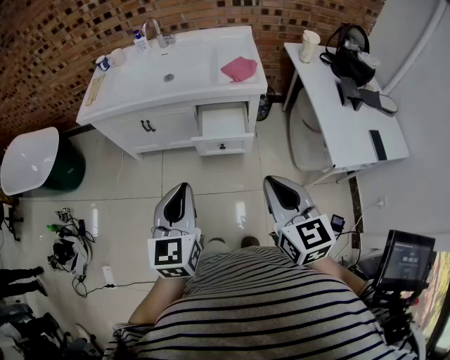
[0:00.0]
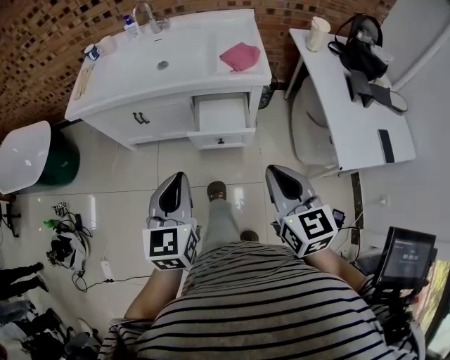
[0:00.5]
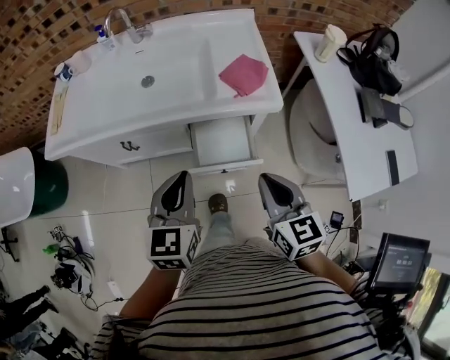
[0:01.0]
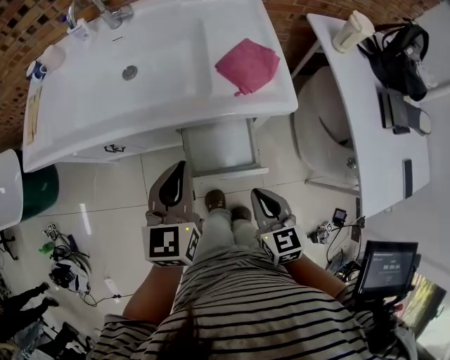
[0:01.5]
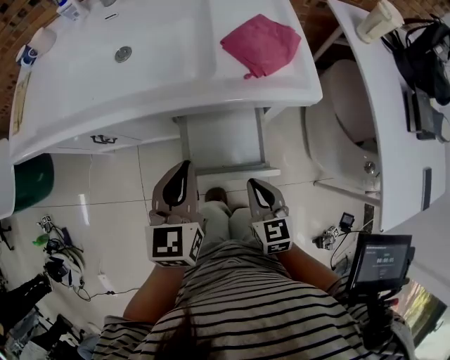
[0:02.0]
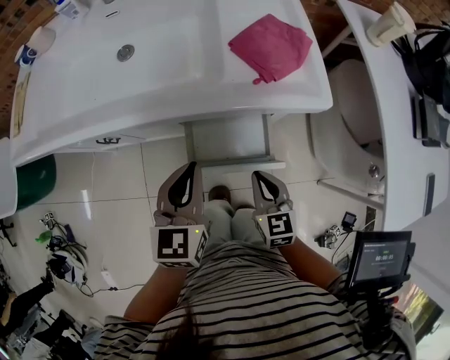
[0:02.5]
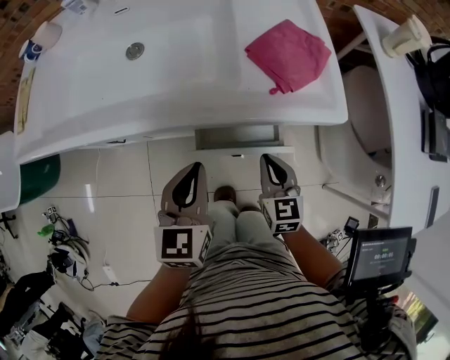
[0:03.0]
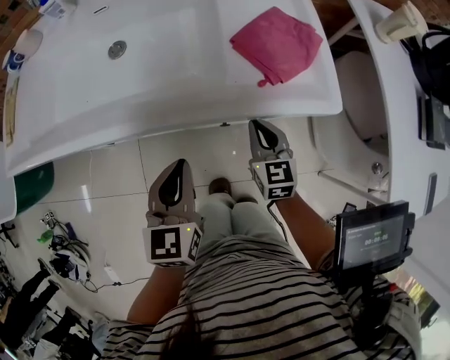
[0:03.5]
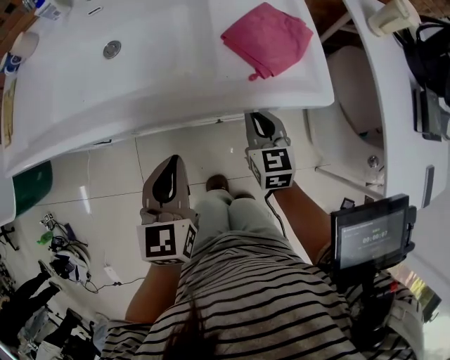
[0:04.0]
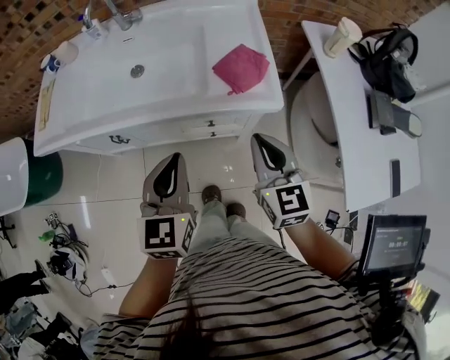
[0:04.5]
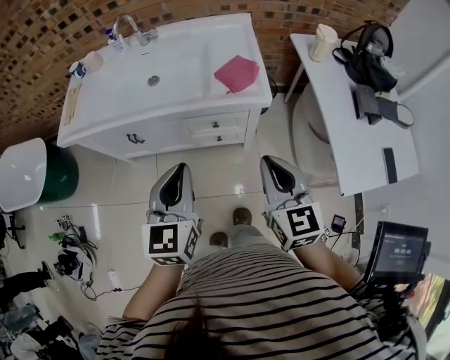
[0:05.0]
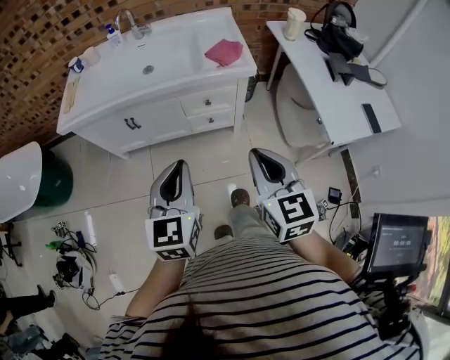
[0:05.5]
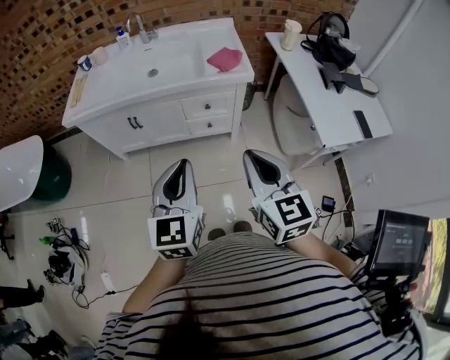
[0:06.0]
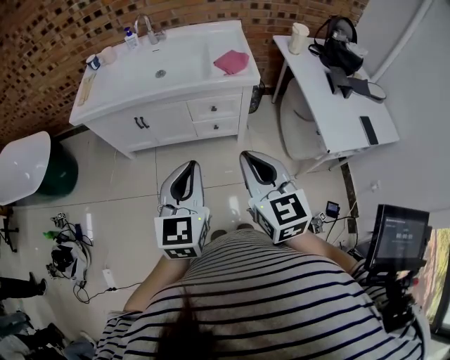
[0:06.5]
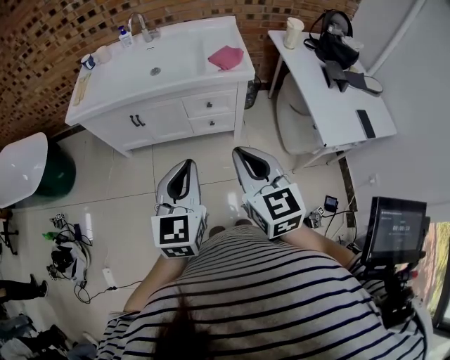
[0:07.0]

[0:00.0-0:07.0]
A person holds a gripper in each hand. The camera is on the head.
0:00.0 to 0:02.0: The right gripper is displaced downward and forward by approximately 50 cm. The left gripper is displaced forward and downward by approximately 40 cm.
0:02.0 to 0:03.5: The right gripper moves forward, roughly 15 cm.
0:03.5 to 0:05.0: Both grippers travel together upward and backward, about 35 cm.
0:05.0 to 0:07.0: The left gripper moves backward, approximately 20 cm. Meanwhile the right gripper is displaced backward and to the left by some 20 cm.

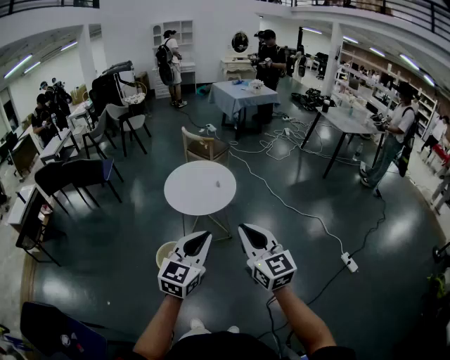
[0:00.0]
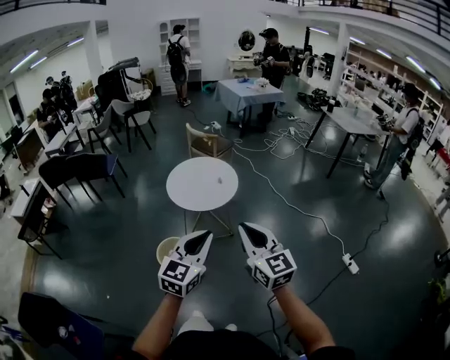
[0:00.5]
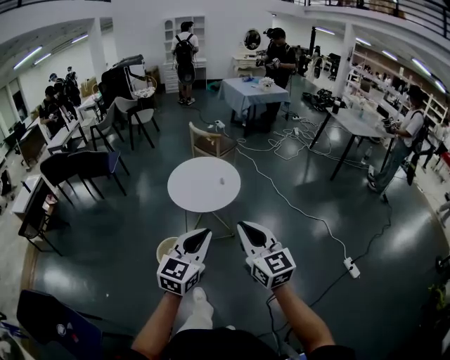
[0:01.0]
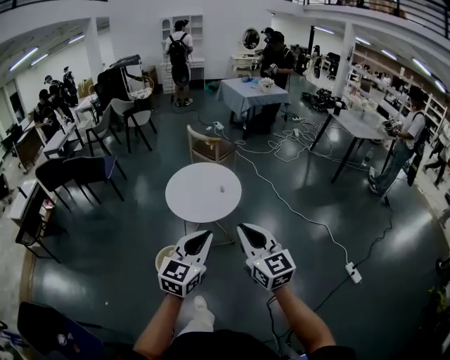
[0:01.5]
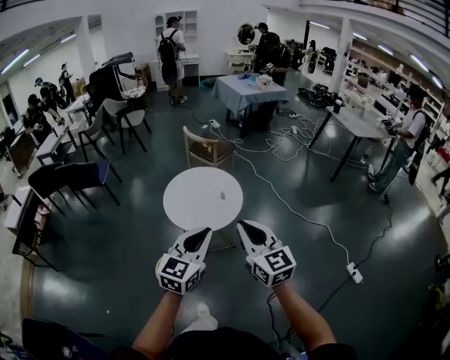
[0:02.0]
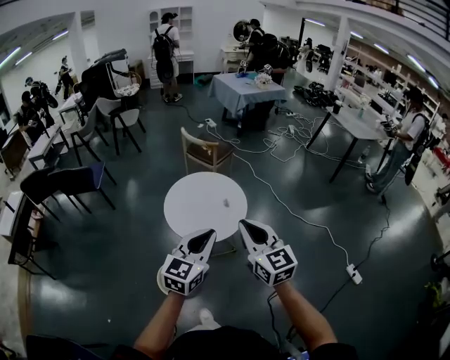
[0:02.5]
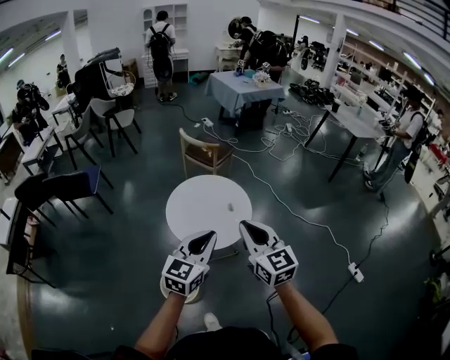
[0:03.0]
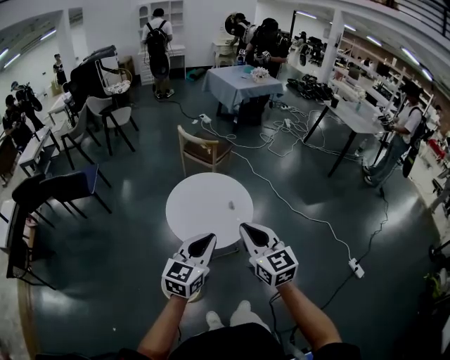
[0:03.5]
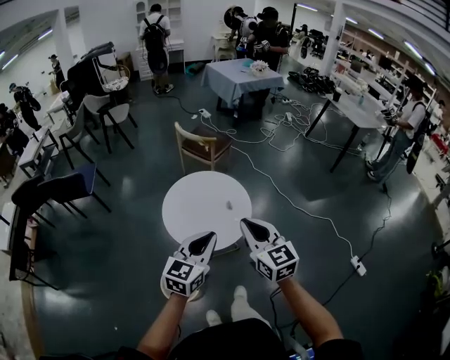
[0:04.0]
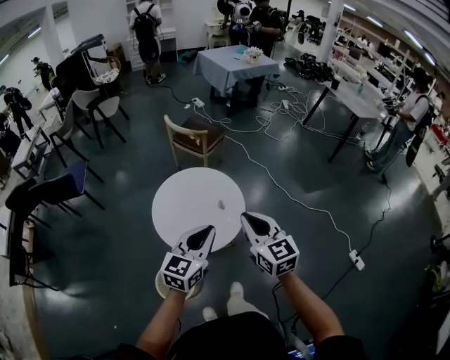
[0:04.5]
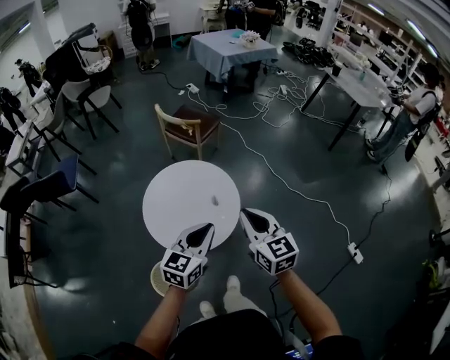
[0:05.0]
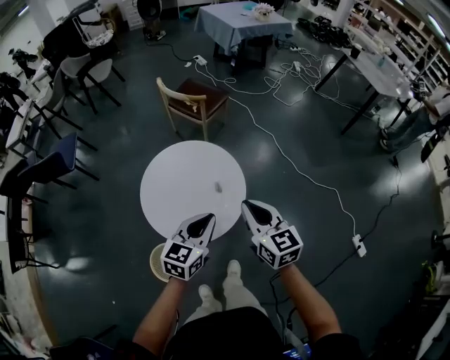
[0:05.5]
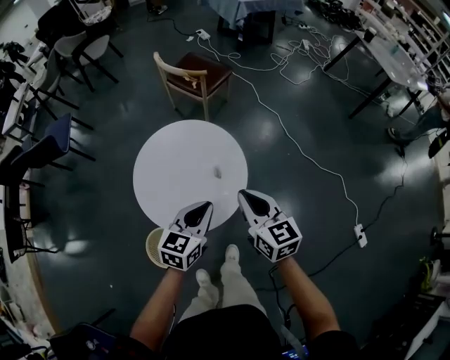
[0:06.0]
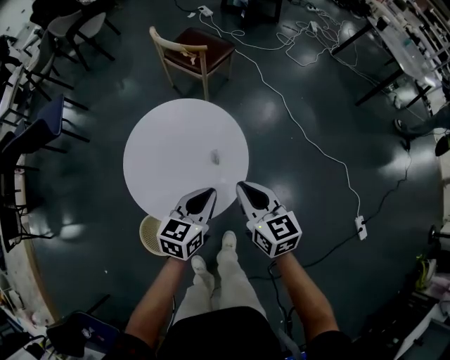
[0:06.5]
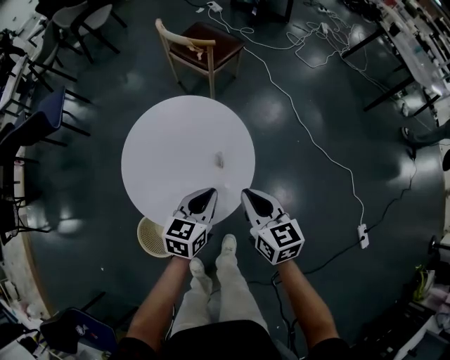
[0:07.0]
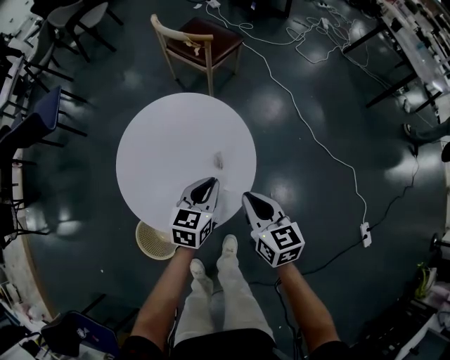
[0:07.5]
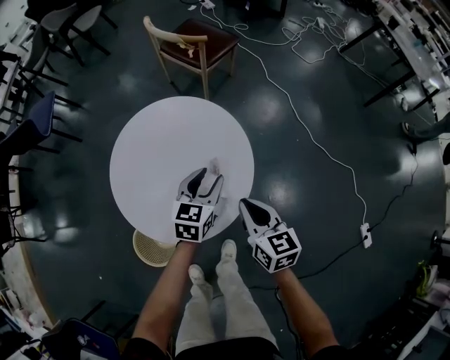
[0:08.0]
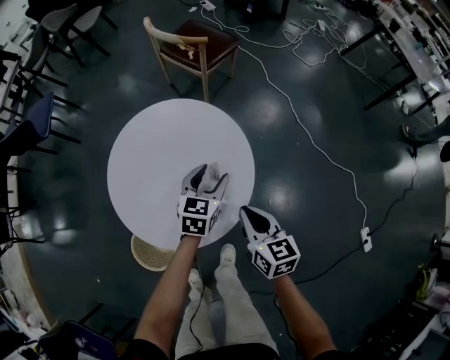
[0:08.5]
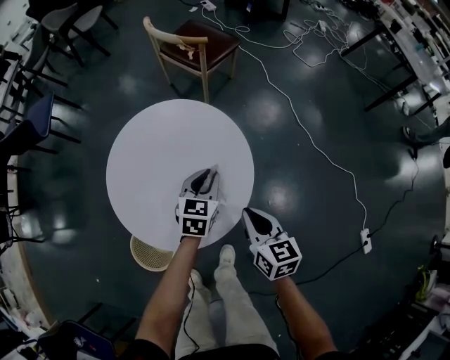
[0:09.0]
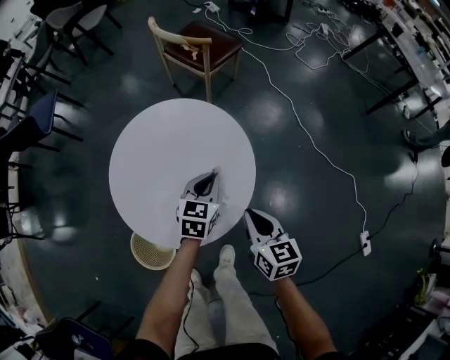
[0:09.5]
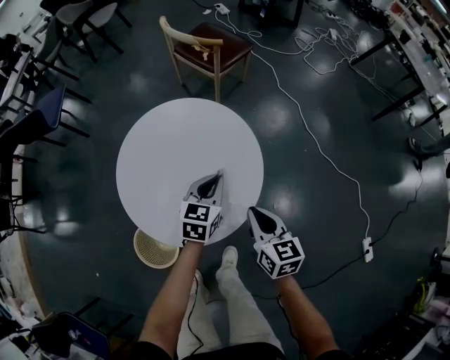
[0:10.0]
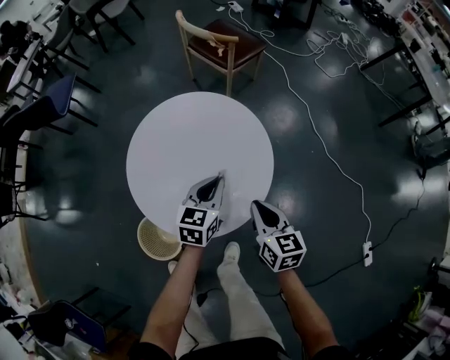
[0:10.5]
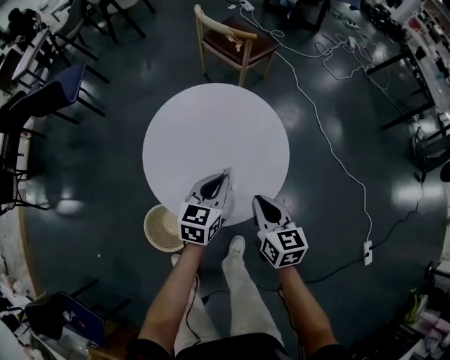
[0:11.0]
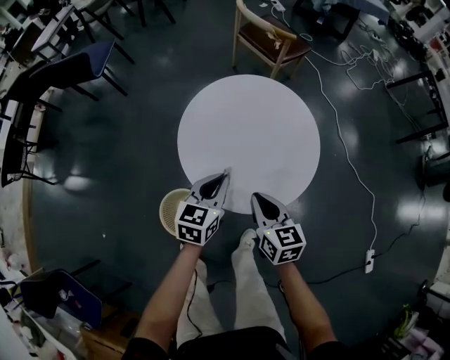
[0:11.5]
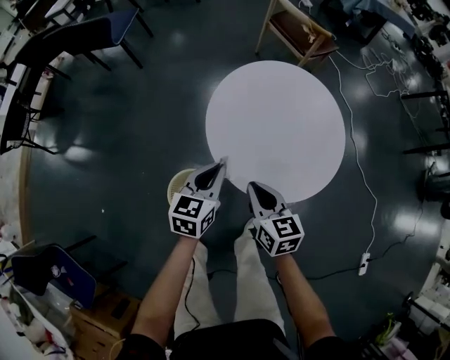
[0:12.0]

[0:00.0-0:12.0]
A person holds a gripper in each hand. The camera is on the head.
0:00.0 to 0:02.0: Both grippers travel together forward, roughly 20 cm.
0:02.0 to 0:04.0: Both grippers travel together forward and to the left, approximately 20 cm.
0:04.0 to 0:06.0: The grippers both shift forward and downward by about 30 cm.
0:06.0 to 0:08.0: The right gripper shifts some 20 cm downward. Meanwhile the left gripper travels downward and forward by approximately 25 cm, and opens up.
0:08.0 to 0:10.0: The left gripper closes.
0:10.0 to 0:12.0: The left gripper goes roughly 35 cm to the left and backward. The right gripper shifts roughly 30 cm to the left.

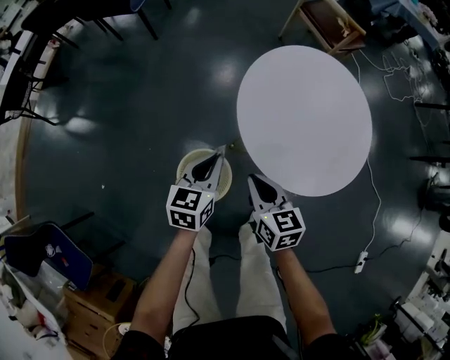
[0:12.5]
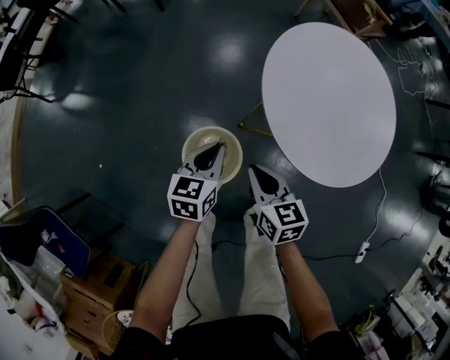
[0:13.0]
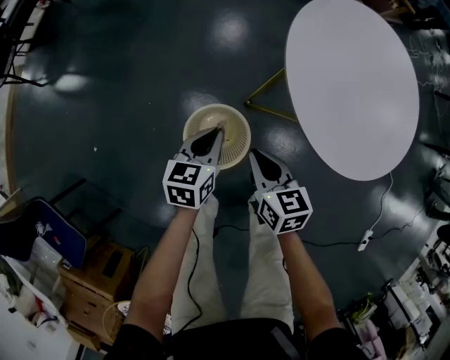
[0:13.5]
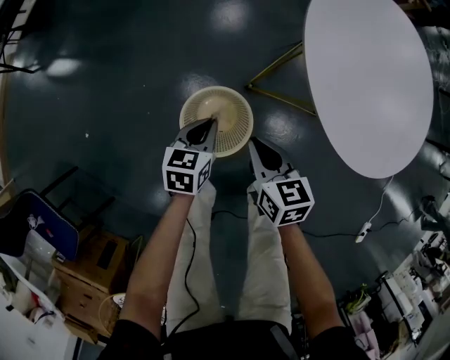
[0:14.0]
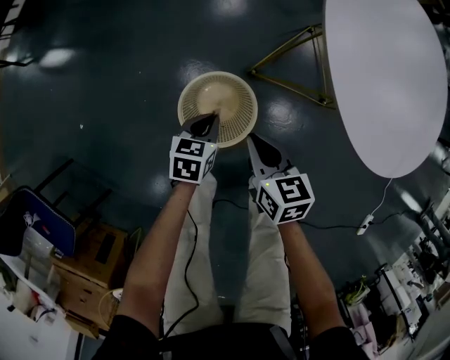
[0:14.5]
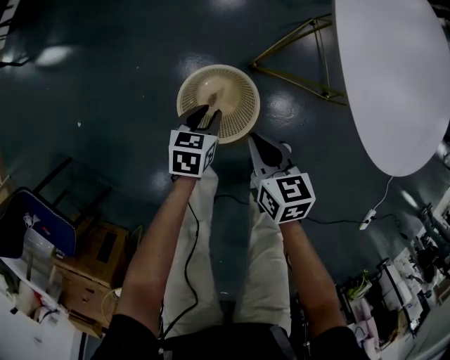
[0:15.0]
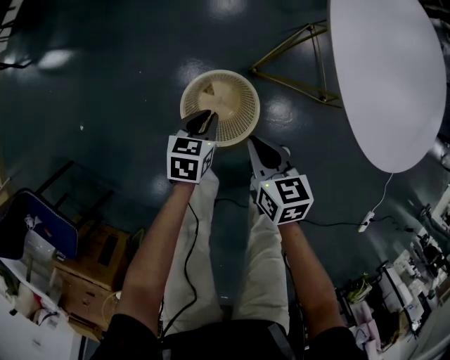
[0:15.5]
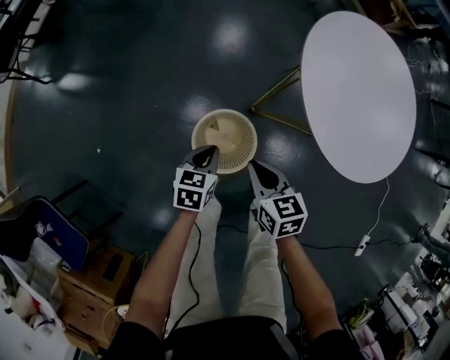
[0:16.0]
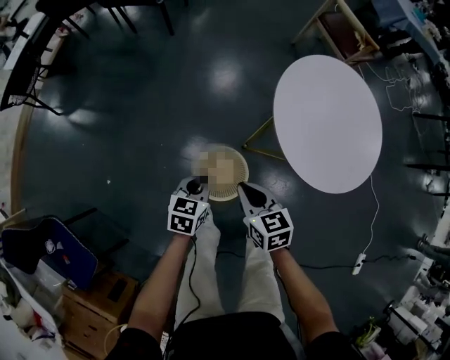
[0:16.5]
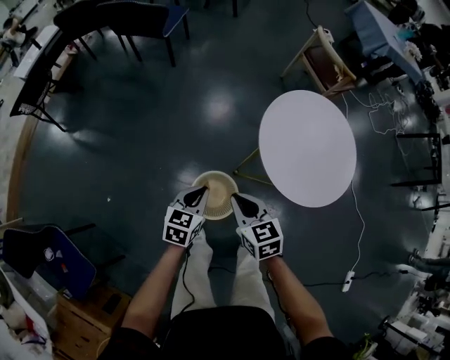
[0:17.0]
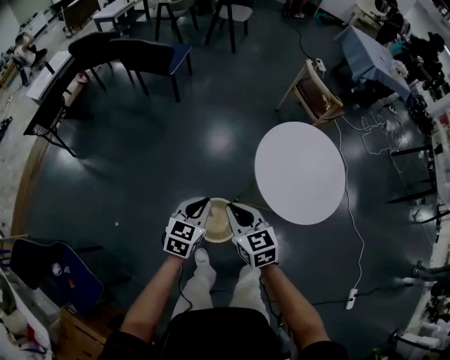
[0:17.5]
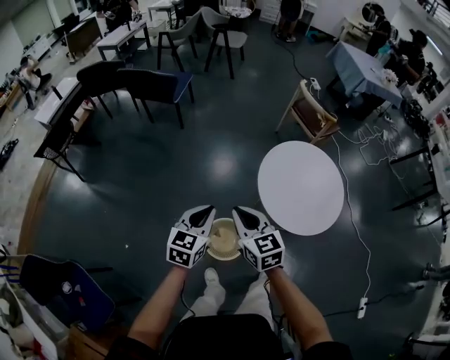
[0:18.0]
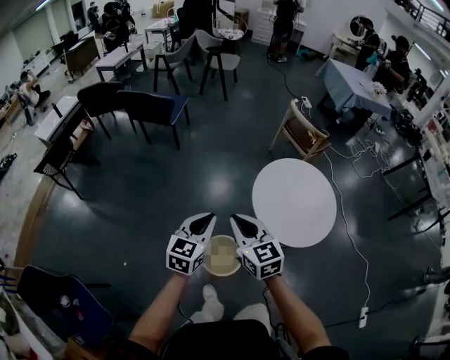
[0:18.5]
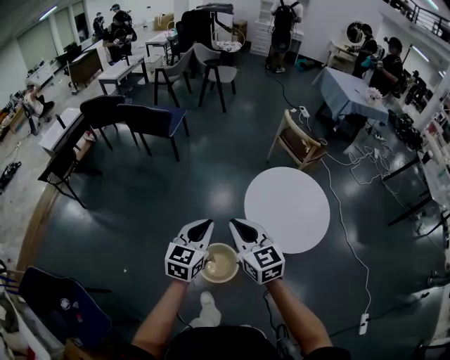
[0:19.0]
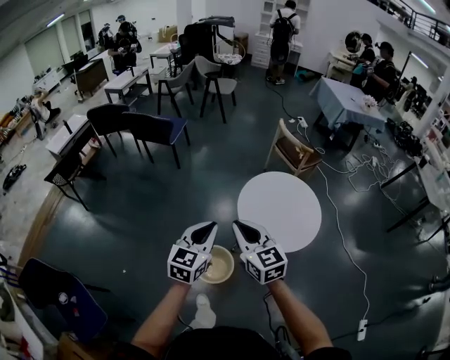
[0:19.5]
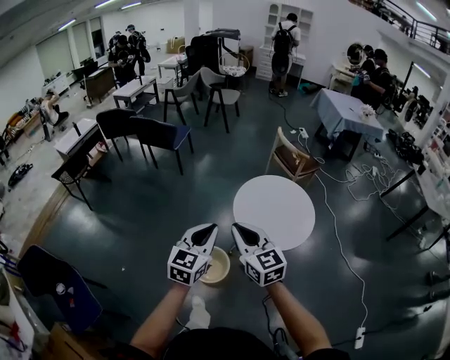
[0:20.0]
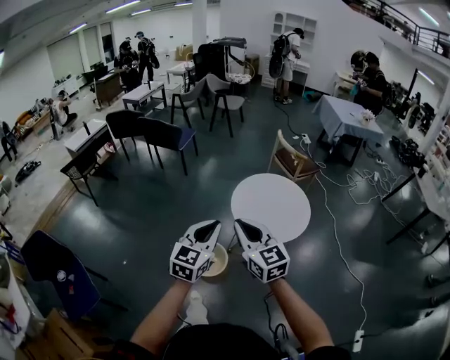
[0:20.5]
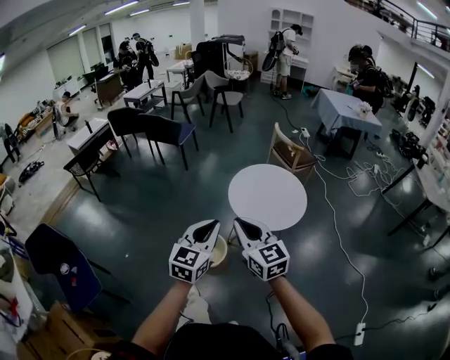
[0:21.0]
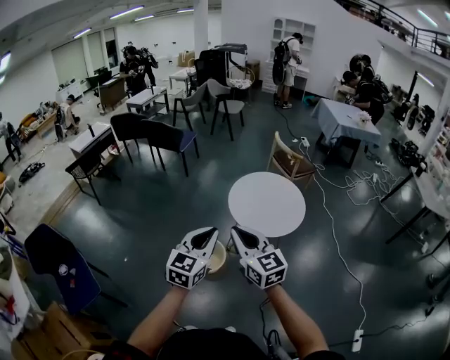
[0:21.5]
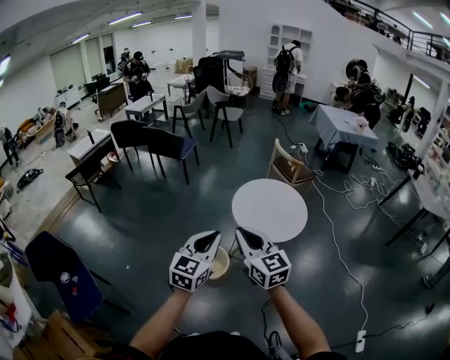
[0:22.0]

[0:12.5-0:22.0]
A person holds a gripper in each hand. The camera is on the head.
0:12.5 to 0:14.5: The right gripper goes about 30 cm downward and to the left. The left gripper moves downward, approximately 35 cm, and swivels some 20 degrees.
0:14.5 to 0:16.5: The two grippers go about 25 cm upward. The left gripper opens, then closes again.
0:16.5 to 0:18.0: The grippers both shift upward by some 35 cm. The left gripper swivels about 20 degrees; the right gripper turns by roughly 20 degrees.
0:18.0 to 0:20.0: The grippers both shift backward, upward and to the right by some 30 cm.
0:20.0 to 0:22.0: The grippers both shift backward by roughly 20 cm.
